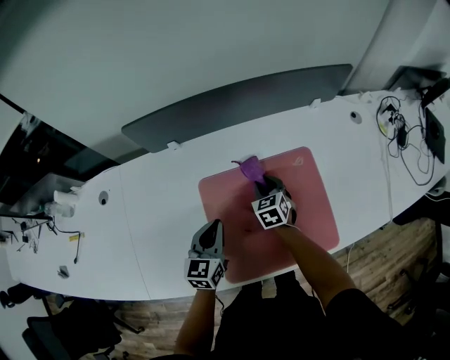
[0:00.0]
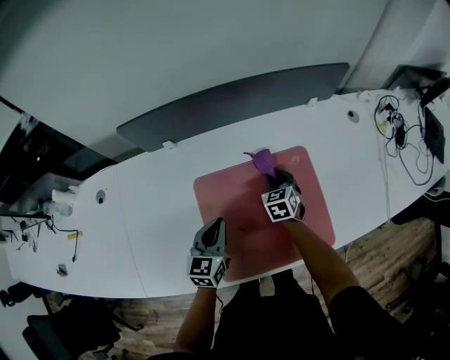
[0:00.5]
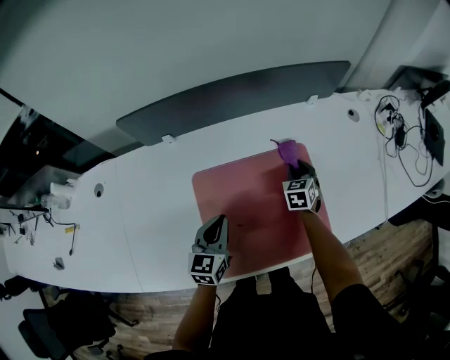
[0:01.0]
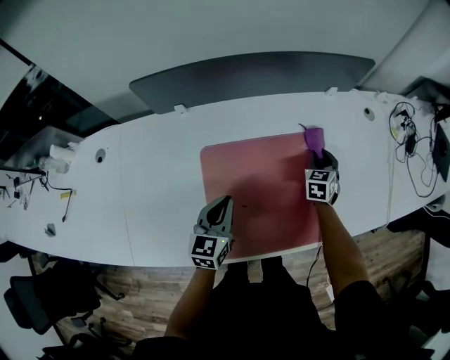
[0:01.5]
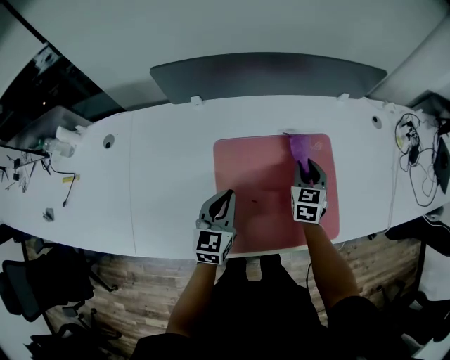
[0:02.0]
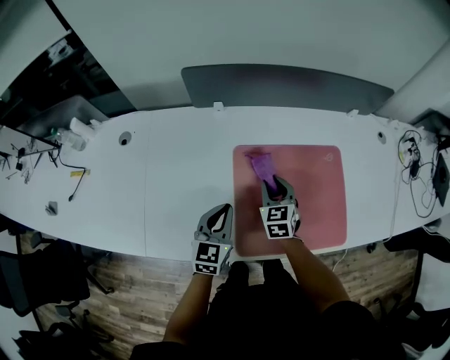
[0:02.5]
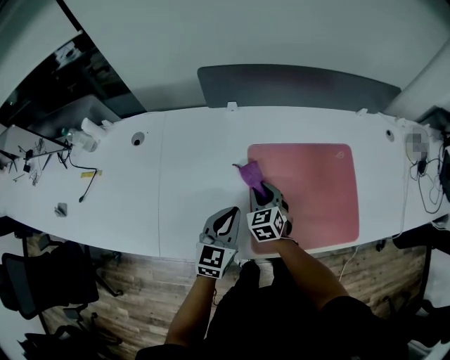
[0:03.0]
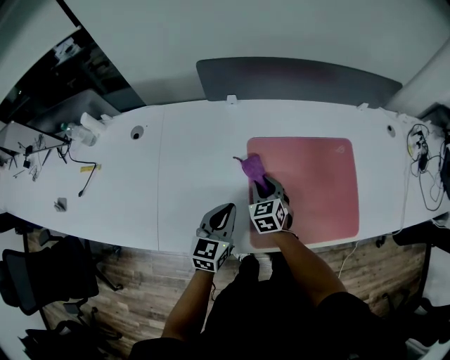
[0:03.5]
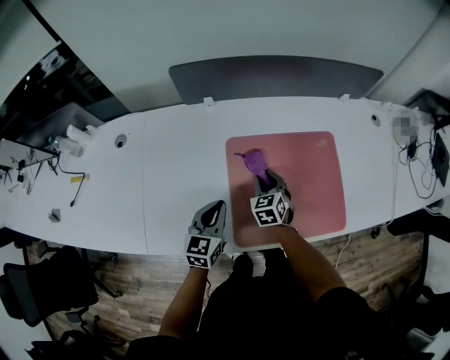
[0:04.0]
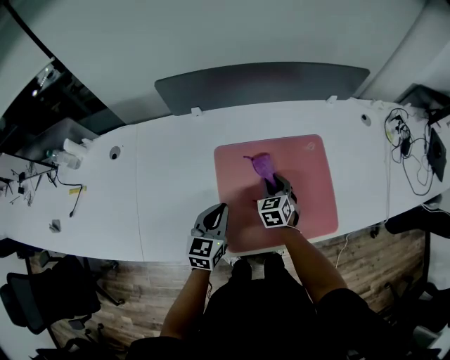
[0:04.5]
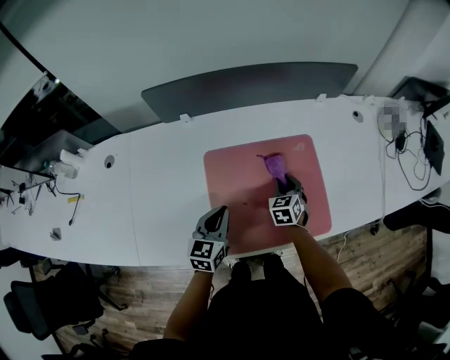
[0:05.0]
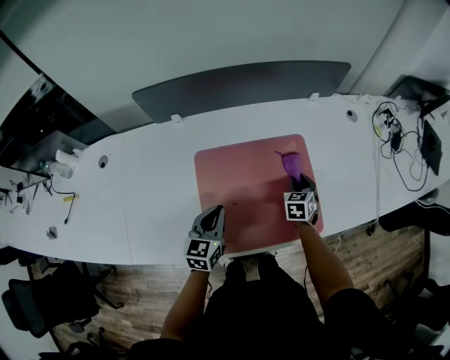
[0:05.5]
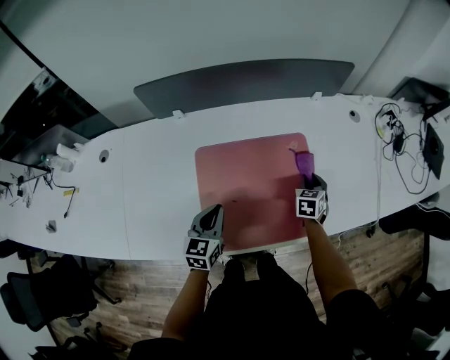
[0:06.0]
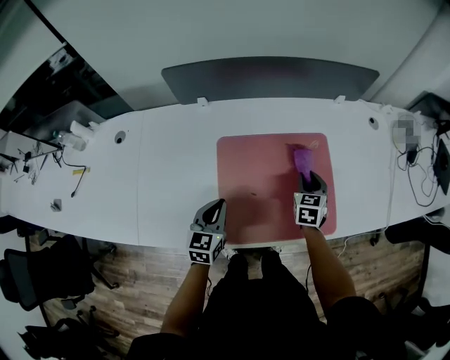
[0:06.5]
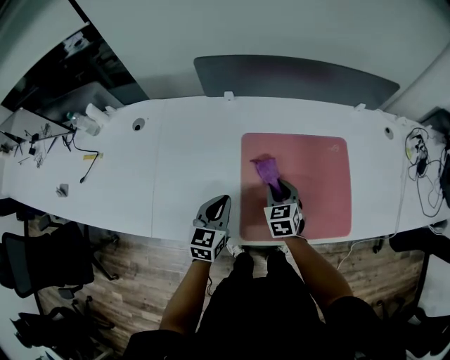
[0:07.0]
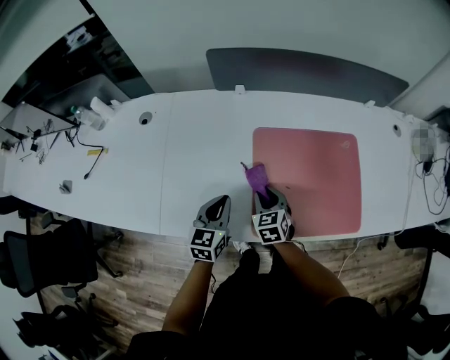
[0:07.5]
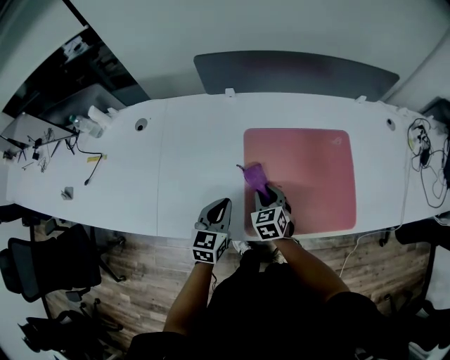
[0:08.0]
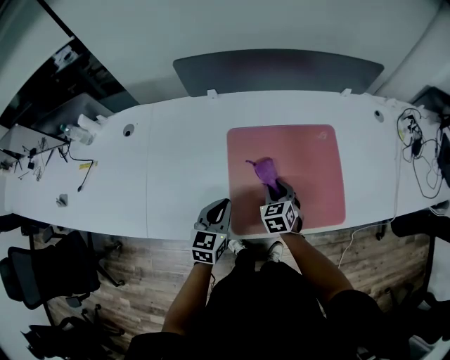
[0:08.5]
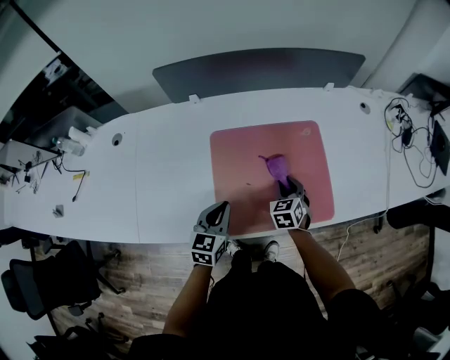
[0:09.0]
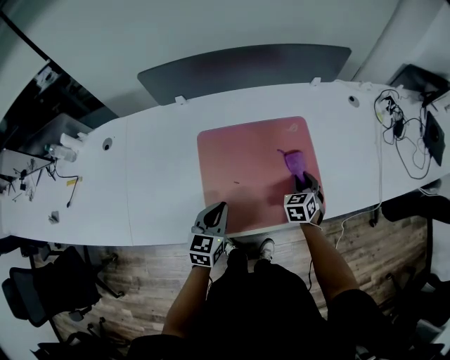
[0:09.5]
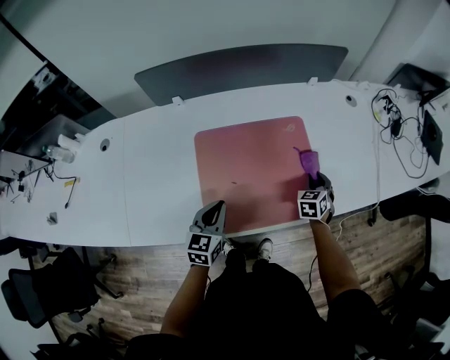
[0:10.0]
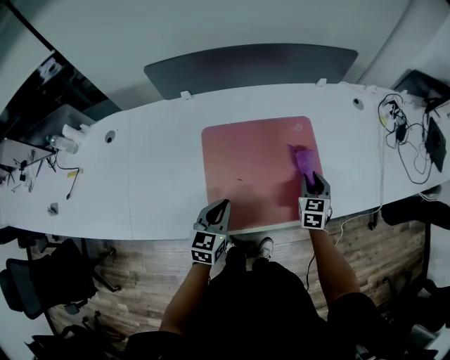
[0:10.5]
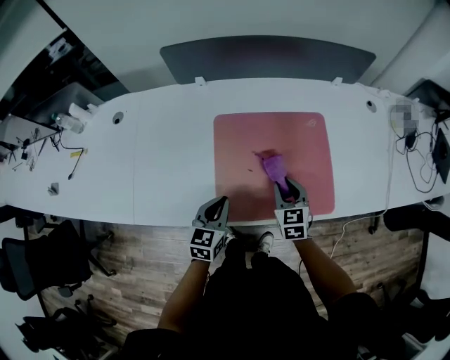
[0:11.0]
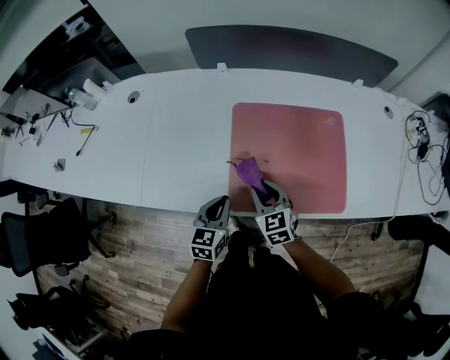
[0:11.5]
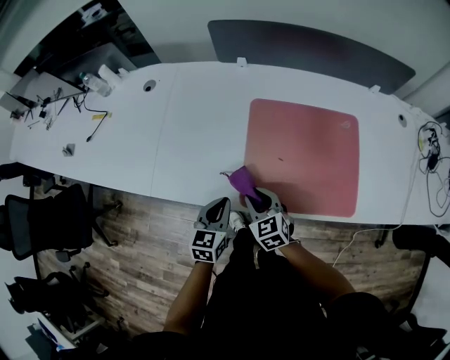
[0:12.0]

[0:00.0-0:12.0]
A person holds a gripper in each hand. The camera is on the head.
0:00.0 to 0:02.0: The right gripper goes roughly 10 cm to the right and upward.
0:02.0 to 0:04.0: The left gripper moves to the left and backward, roughly 10 cm; the right gripper heads to the left and backward, covering some 20 cm.
0:04.0 to 0:06.0: The left gripper goes some 10 cm to the right. Meanwhile the right gripper shifts roughly 30 cm to the right, and swivels some 20 degrees.
0:06.0 to 0:08.0: The left gripper heads to the left and backward, covering roughly 15 cm. The right gripper moves to the left, about 35 cm, and turns by some 30 degrees.
0:08.0 to 0:10.0: The left gripper travels to the right by some 15 cm, while the right gripper is displaced to the right by some 35 cm, and rotates about 30 degrees.
0:10.0 to 0:12.0: The right gripper moves some 40 cm, and changes its angle by about 50 degrees; the left gripper moves approximately 15 cm.

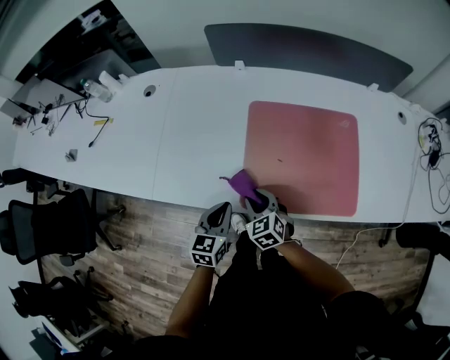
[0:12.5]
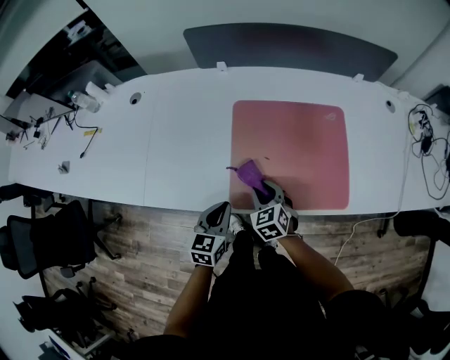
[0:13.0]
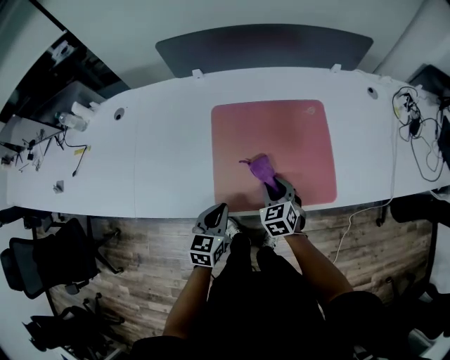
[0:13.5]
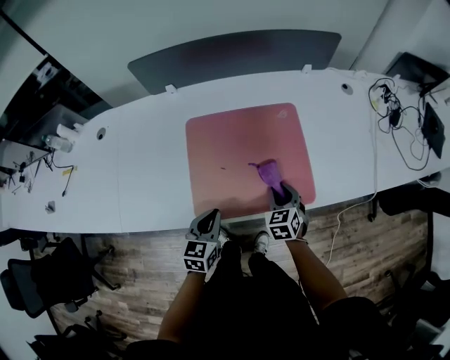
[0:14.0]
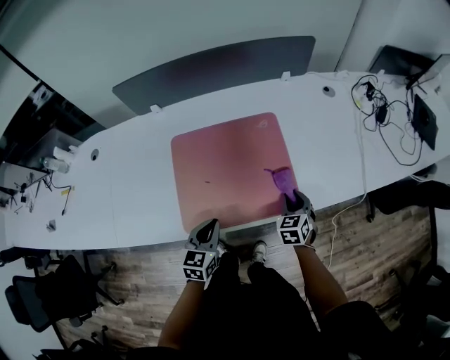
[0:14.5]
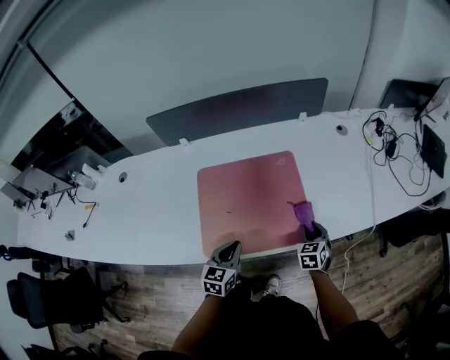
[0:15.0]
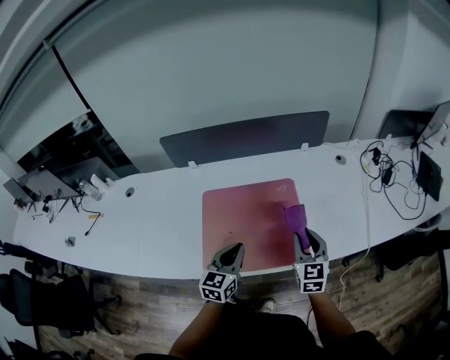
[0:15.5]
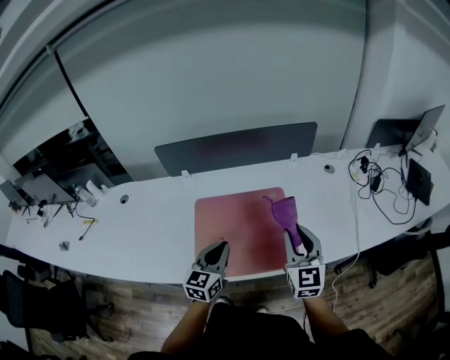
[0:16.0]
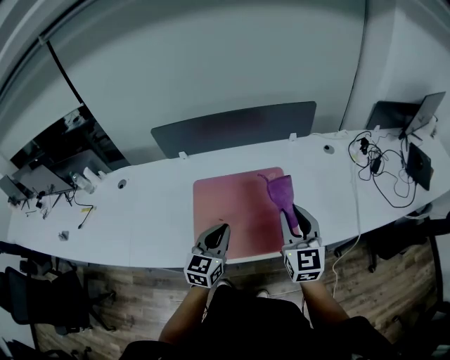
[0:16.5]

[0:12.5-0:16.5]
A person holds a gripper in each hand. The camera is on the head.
0:12.5 to 0:14.5: The left gripper changes place by about 15 cm; the right gripper changes place by roughly 35 cm, and changes its angle by about 40 degrees.
0:14.5 to 0:16.5: The left gripper is displaced upward by roughly 15 cm; the right gripper goes some 25 cm upward, and tips its fingers upward by about 40 degrees.

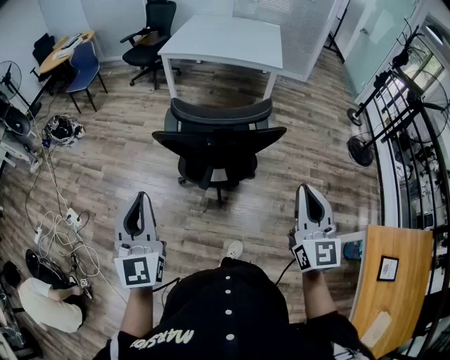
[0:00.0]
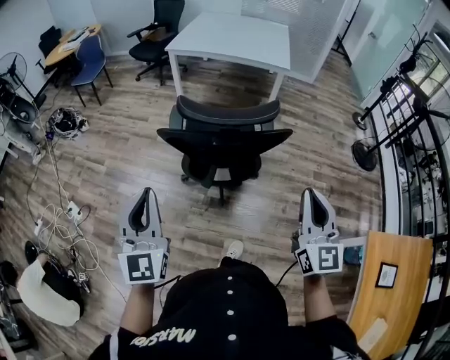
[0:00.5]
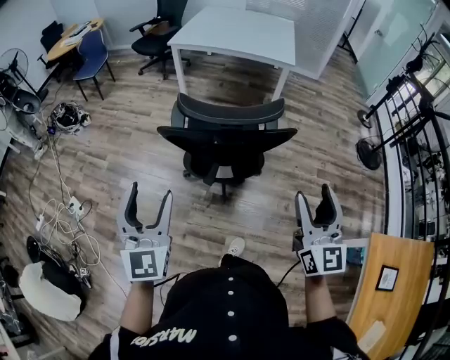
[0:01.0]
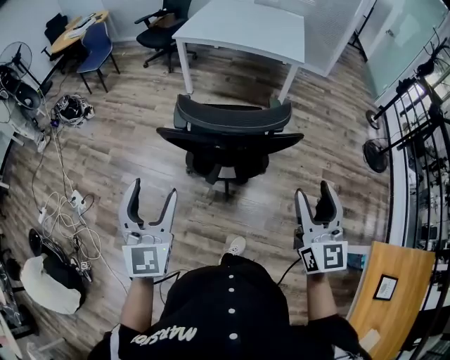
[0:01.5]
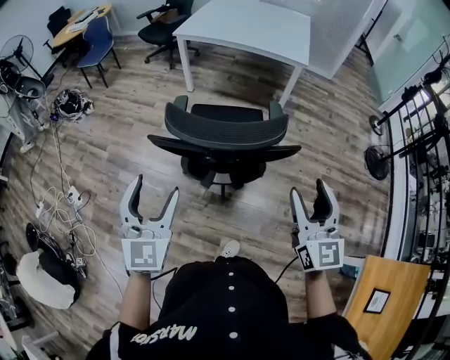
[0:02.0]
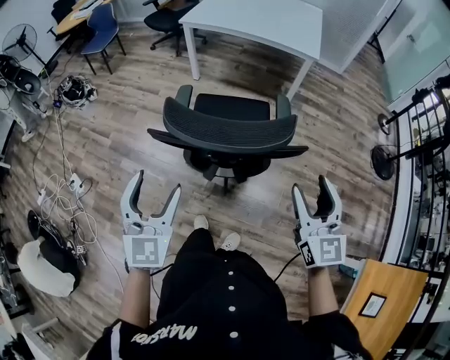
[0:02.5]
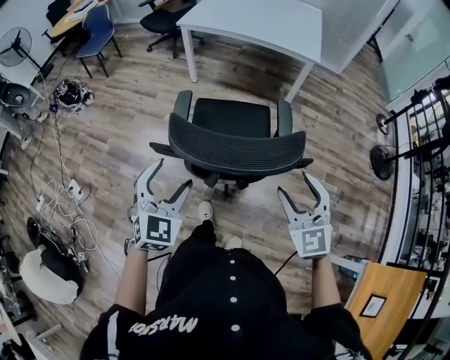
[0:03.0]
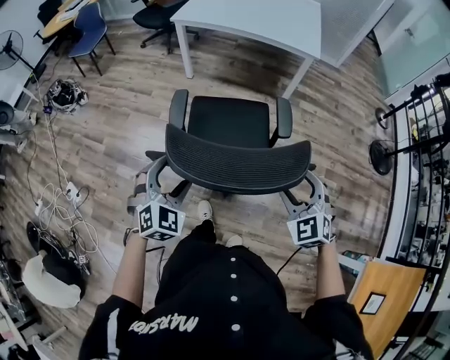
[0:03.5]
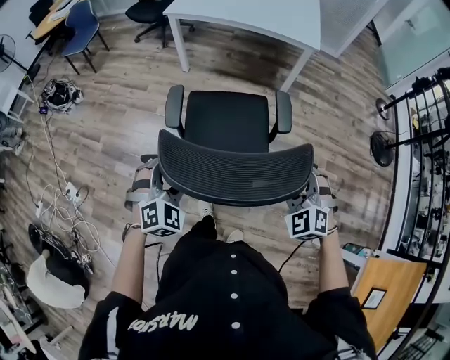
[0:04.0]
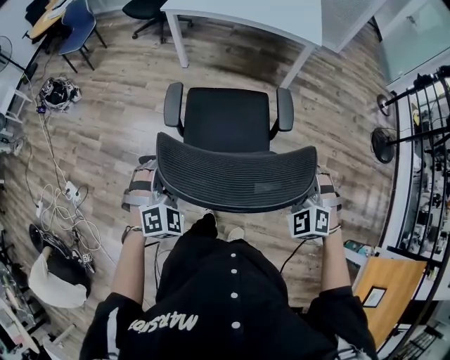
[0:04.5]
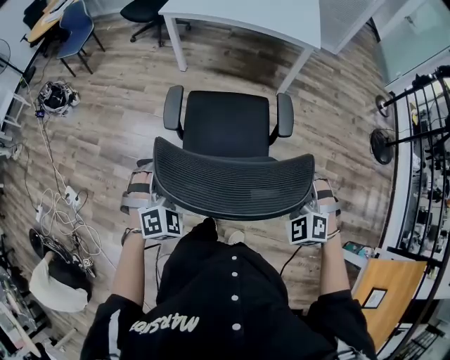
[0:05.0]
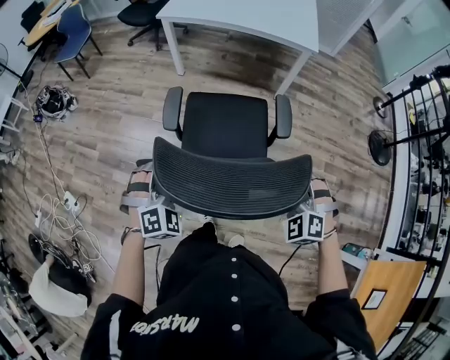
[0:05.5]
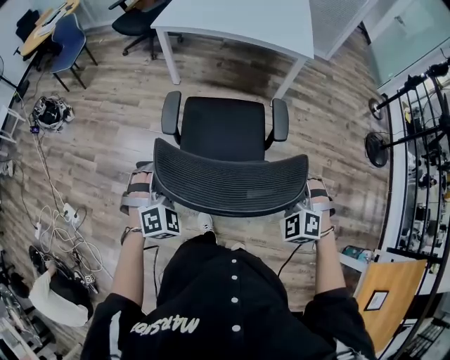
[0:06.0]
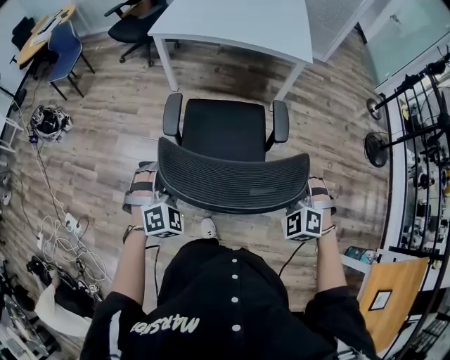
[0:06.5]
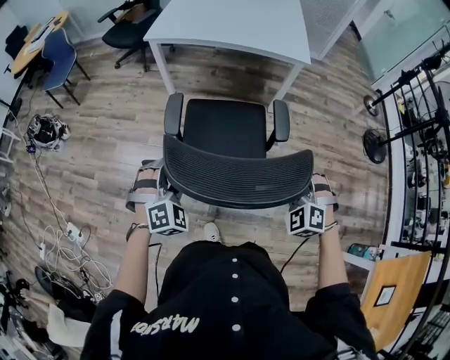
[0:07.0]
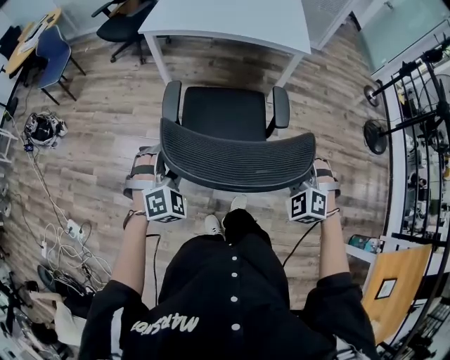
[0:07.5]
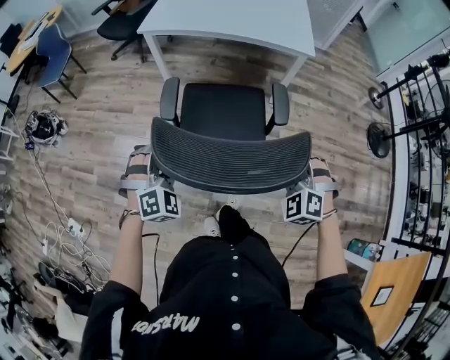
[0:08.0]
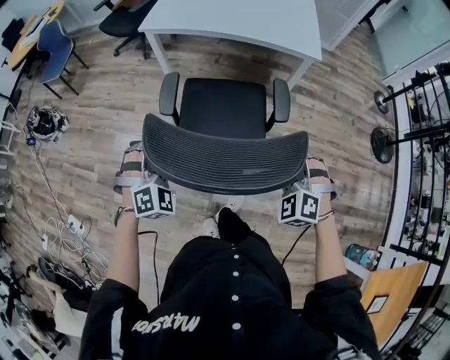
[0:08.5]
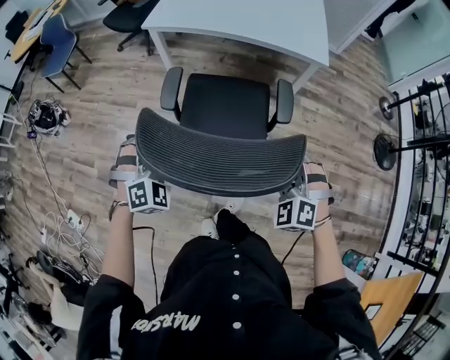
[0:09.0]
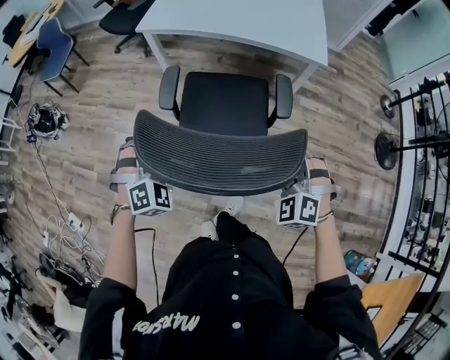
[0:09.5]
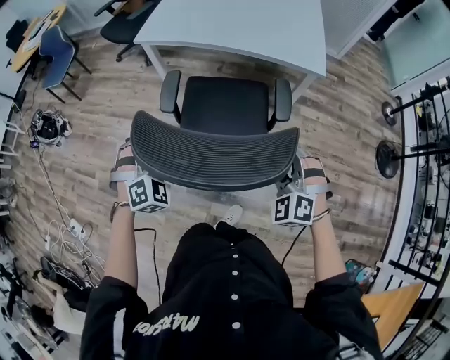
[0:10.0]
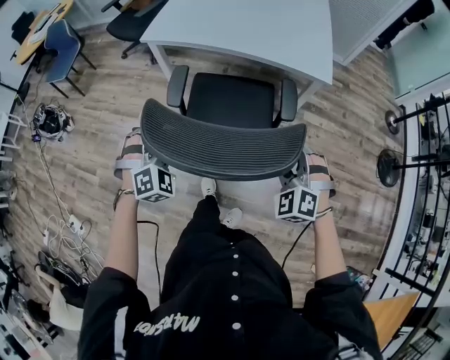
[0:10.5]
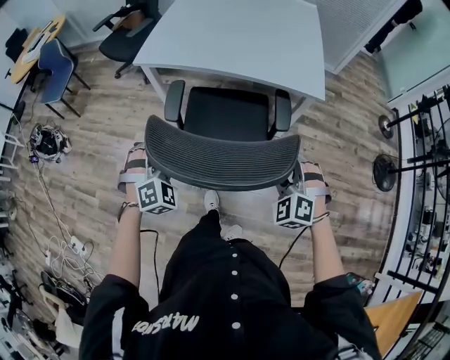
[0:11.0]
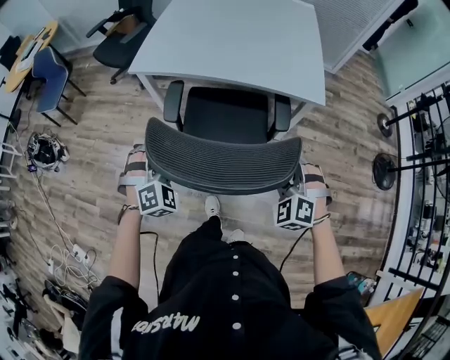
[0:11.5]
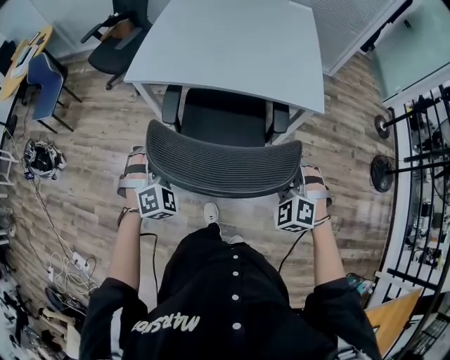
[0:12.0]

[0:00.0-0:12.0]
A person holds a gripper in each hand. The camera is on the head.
0:00.0 to 0:02.0: The left gripper moves forward, to the right and downward, about 15 cm, and opens up. The right gripper moves forward, about 10 cm, and opens.
0:02.0 to 0:04.0: Both grippers travel together downward and forward, about 20 cm. The right gripper points its fingers about 40 degrees further downward. The left gripper angles its fingers downward, by approximately 30 degrees.
0:04.0 to 0:06.0: Both grippers move forward, about 5 cm.
0:06.0 to 0:08.0: The two grippers go approximately 15 cm forward.
0:08.0 to 0:10.0: Both grippers move forward, about 15 cm.
0:10.0 to 0:12.0: Both grippers travel together forward, roughly 15 cm.
